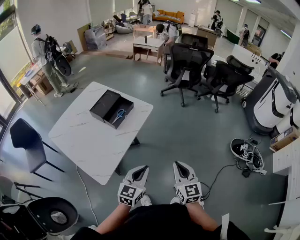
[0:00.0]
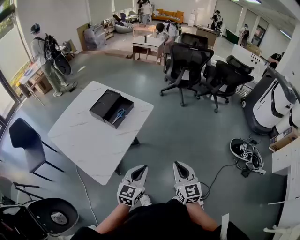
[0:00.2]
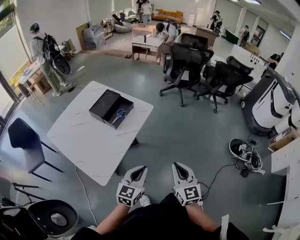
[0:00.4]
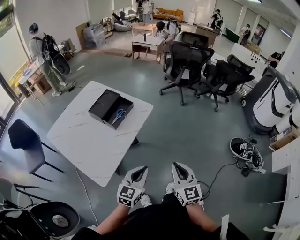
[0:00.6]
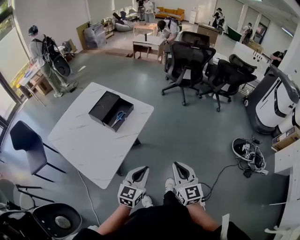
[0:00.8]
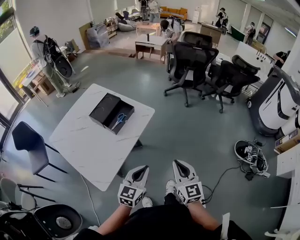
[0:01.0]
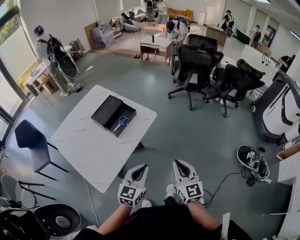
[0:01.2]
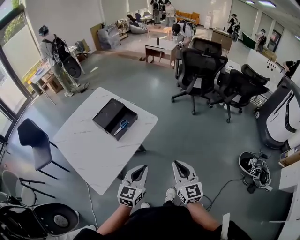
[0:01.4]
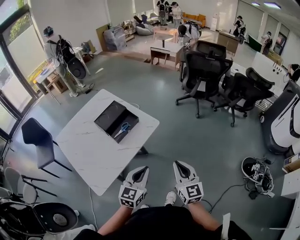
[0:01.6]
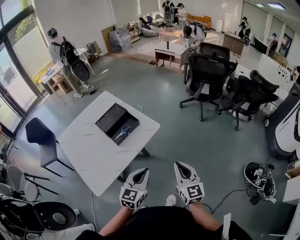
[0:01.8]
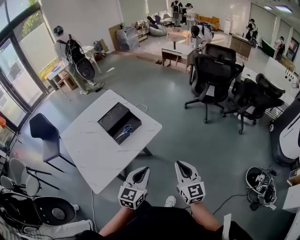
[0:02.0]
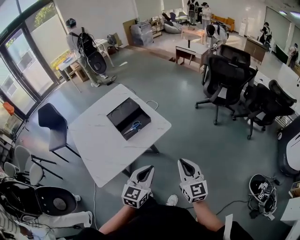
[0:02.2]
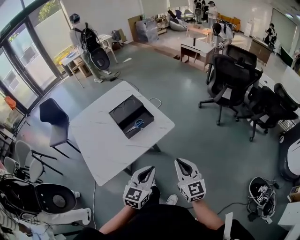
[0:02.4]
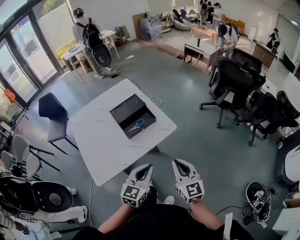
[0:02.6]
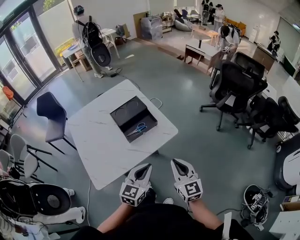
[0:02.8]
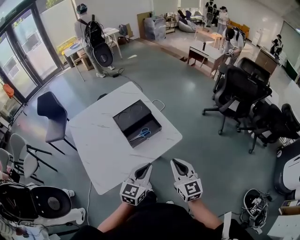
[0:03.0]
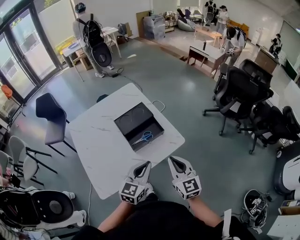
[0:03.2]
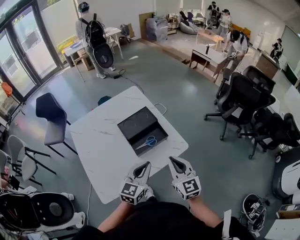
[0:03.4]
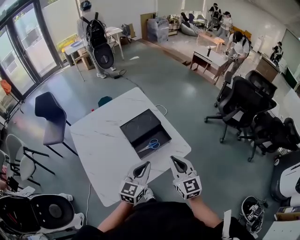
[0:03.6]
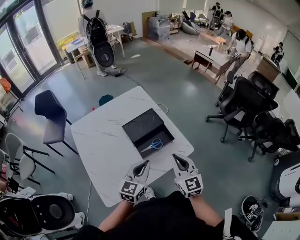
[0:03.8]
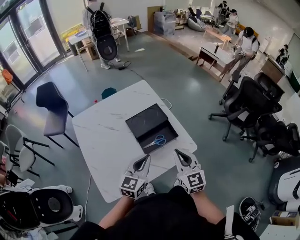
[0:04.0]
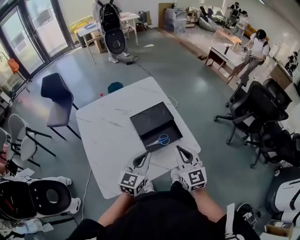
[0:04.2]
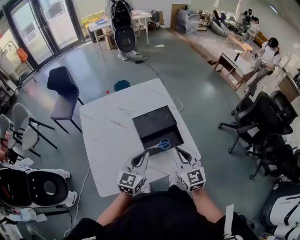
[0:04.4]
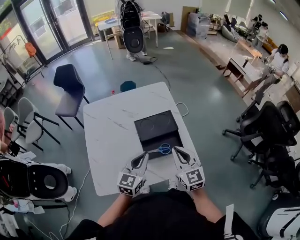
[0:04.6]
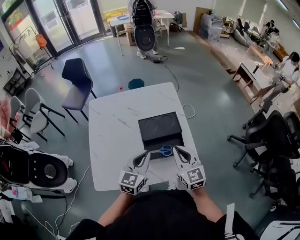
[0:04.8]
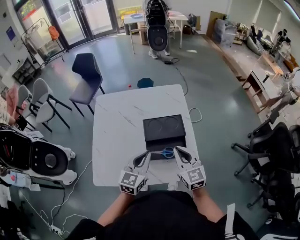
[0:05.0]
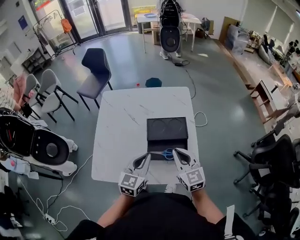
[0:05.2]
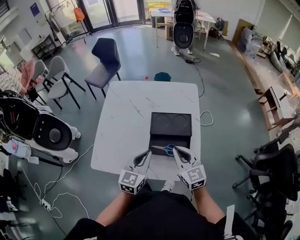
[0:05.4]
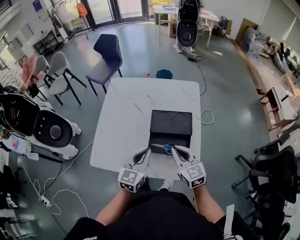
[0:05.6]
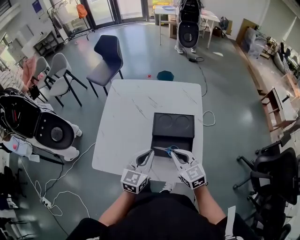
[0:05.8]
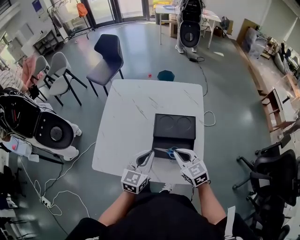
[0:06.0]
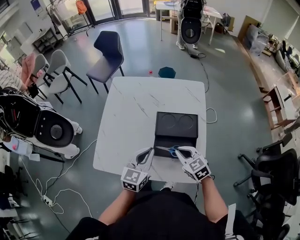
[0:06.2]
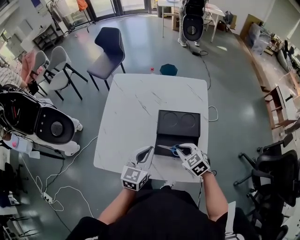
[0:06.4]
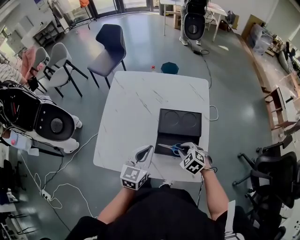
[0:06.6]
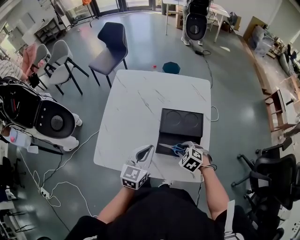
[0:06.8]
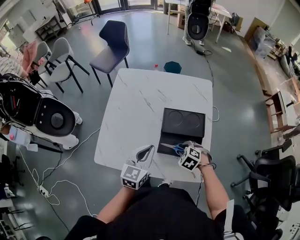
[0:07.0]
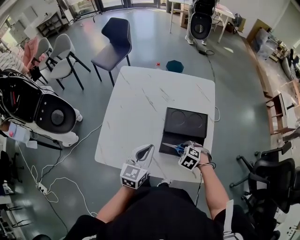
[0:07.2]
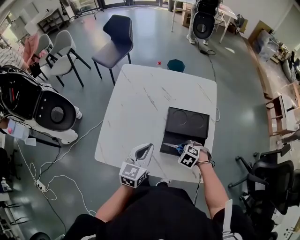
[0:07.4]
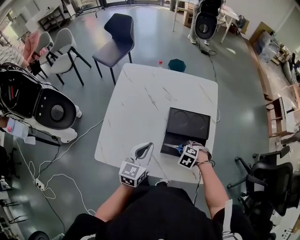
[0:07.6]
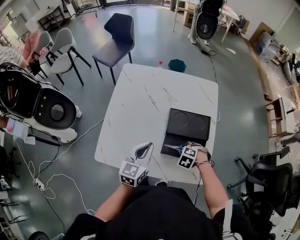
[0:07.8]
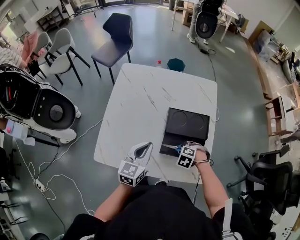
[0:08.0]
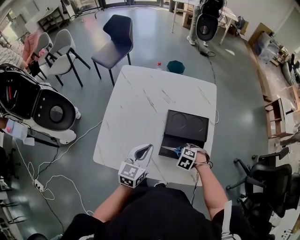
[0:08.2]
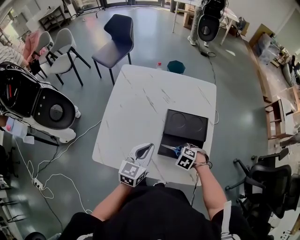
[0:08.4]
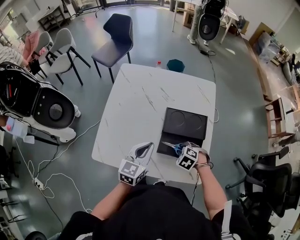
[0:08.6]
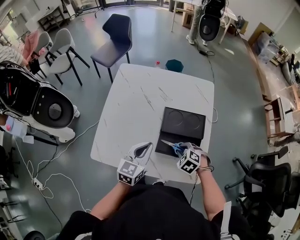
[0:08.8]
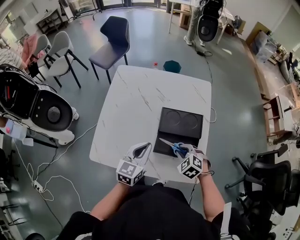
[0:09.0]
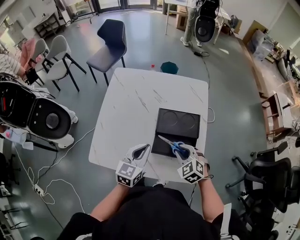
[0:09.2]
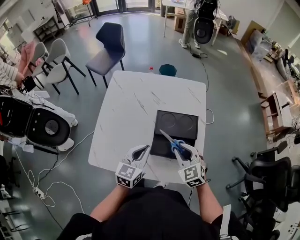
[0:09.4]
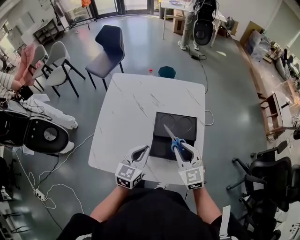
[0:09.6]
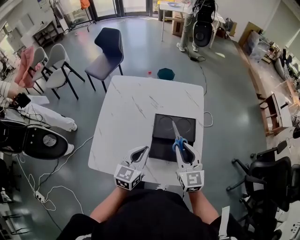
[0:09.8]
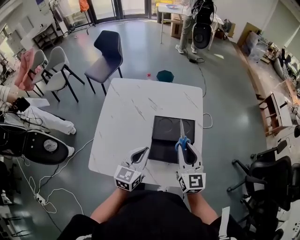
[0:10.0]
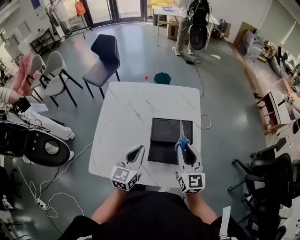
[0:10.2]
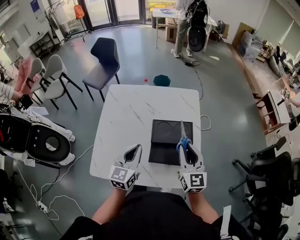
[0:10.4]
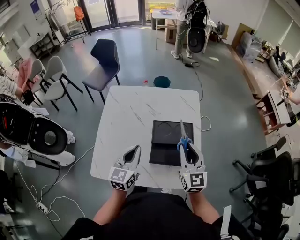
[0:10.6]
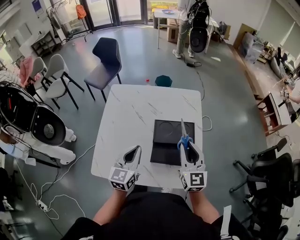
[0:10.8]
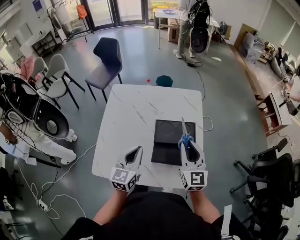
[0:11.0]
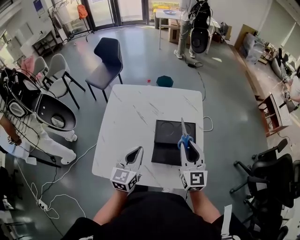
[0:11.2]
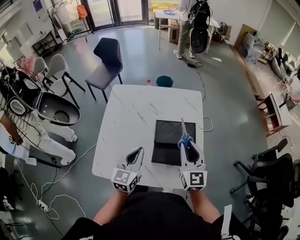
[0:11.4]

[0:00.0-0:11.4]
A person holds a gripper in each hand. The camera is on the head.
0:00.0 to 0:01.4: Both grippers travel together forward, some 10 cm.
0:01.4 to 0:02.8: Both grippers travel together forward, some 10 cm. The right gripper turns by about 20 degrees.
0:02.8 to 0:04.2: The two grippers go roughly 20 cm forward and to the left.
0:04.2 to 0:05.6: The right gripper changes place by about 10 cm, and rotates about 40 degrees, while the left gripper turns by about 30 degrees.
0:05.6 to 0:07.2: The right gripper moves downward, roughly 20 cm, angles its fingers downward, by roughly 50 degrees, and opens up, while the left gripper shifts by about 5 cm.
0:07.2 to 0:08.6: There are only small adjustments of the grippers.
0:08.6 to 0:10.0: The right gripper moves upward, about 25 cm, and tips its fingers upward by roughly 70 degrees.
0:10.0 to 0:11.4: The grippers stay close to where they were, moving slightly.

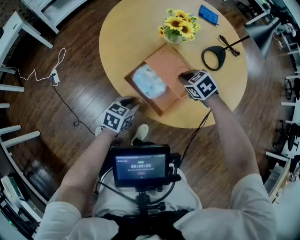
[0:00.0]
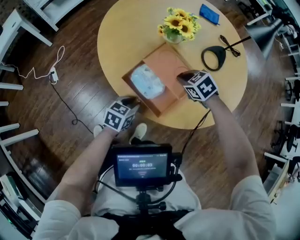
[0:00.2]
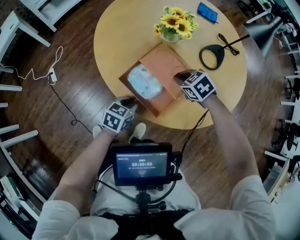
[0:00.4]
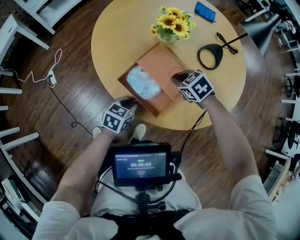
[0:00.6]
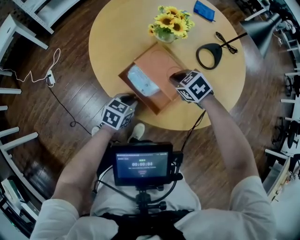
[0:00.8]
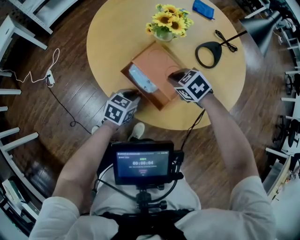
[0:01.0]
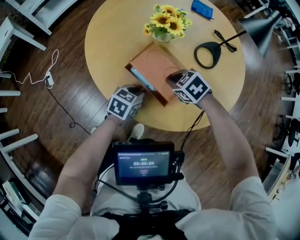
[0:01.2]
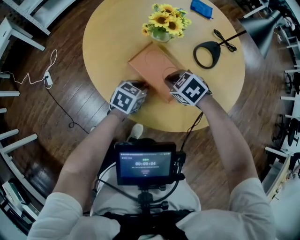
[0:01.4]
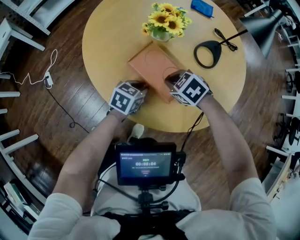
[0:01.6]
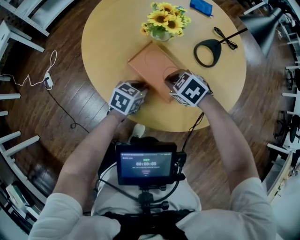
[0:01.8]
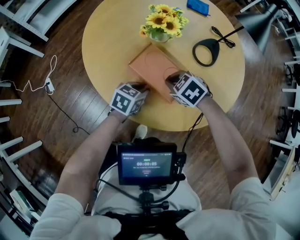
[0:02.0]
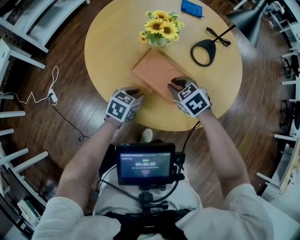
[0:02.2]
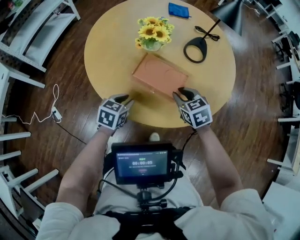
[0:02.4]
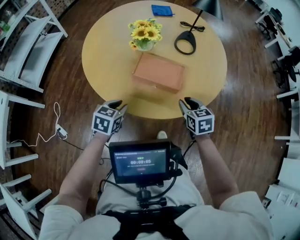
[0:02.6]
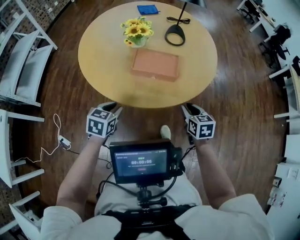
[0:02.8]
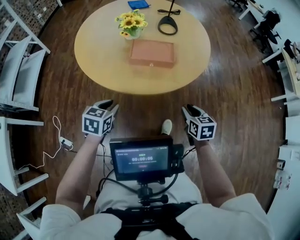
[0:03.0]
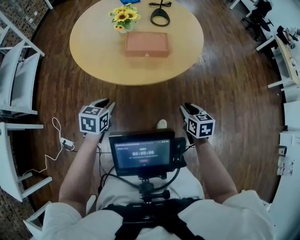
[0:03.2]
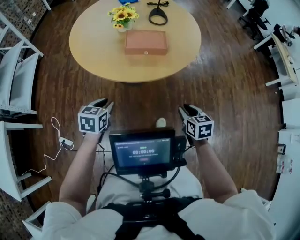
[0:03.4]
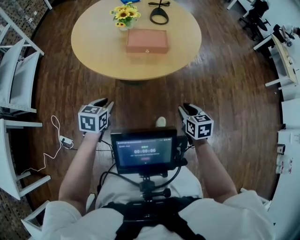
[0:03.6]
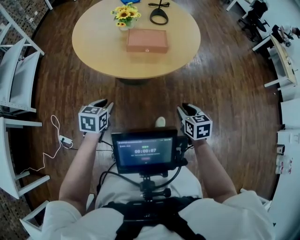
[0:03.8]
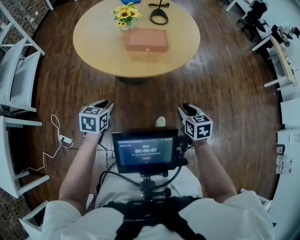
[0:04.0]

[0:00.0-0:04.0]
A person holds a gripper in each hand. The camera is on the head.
0:00.0 to 0:01.4: The left gripper heads to the right and forward, covering about 15 cm.
0:01.4 to 0:02.6: The right gripper changes place by some 15 cm, turns by some 70 degrees, and opens up. The left gripper shifts by approximately 20 cm.
0:02.6 to 0:04.0: The right gripper is displaced backward by approximately 30 cm, and turns by some 20 degrees; the left gripper is displaced backward by some 20 cm.

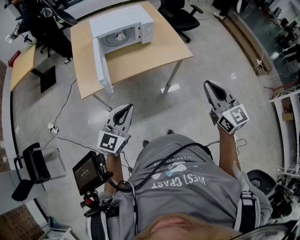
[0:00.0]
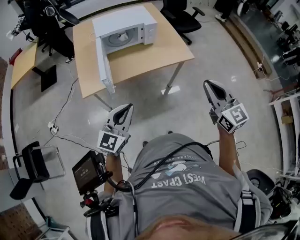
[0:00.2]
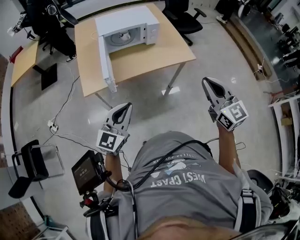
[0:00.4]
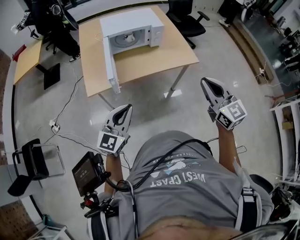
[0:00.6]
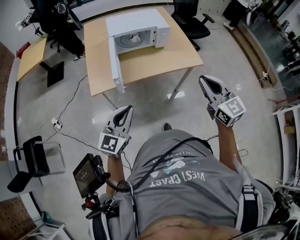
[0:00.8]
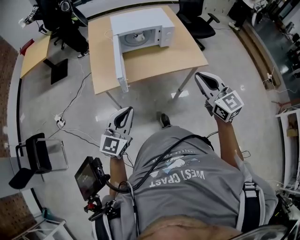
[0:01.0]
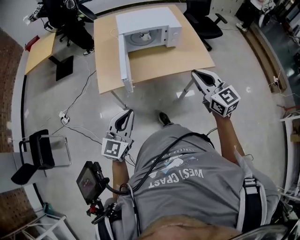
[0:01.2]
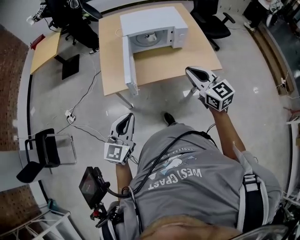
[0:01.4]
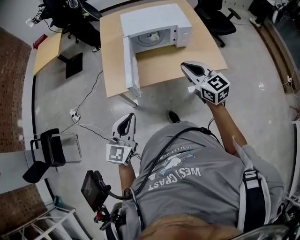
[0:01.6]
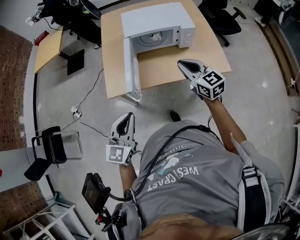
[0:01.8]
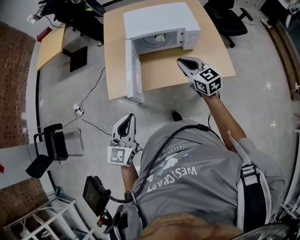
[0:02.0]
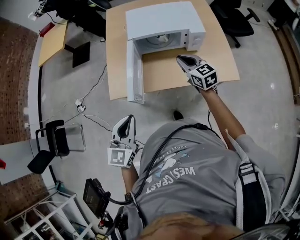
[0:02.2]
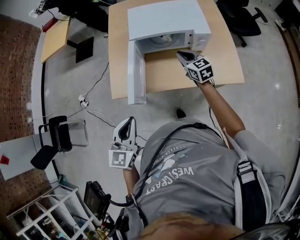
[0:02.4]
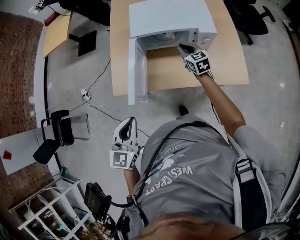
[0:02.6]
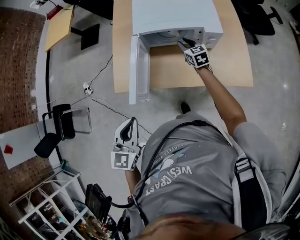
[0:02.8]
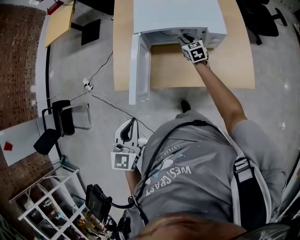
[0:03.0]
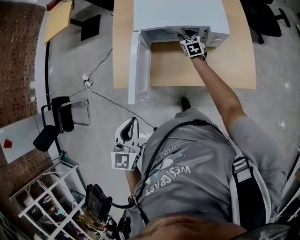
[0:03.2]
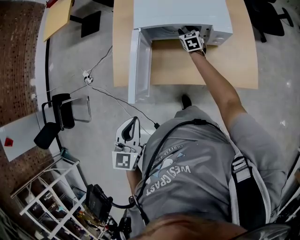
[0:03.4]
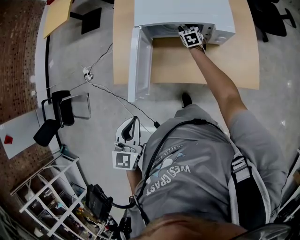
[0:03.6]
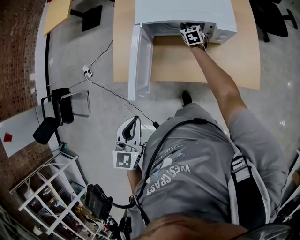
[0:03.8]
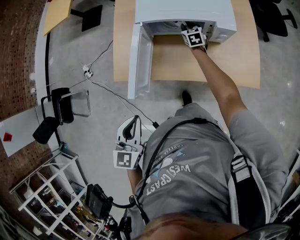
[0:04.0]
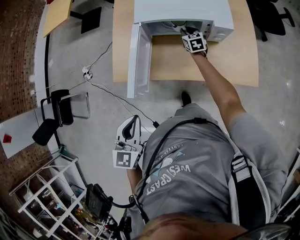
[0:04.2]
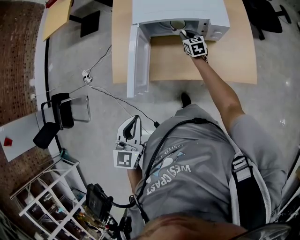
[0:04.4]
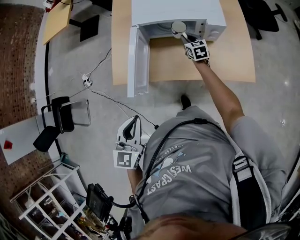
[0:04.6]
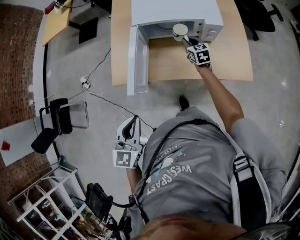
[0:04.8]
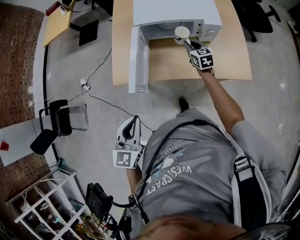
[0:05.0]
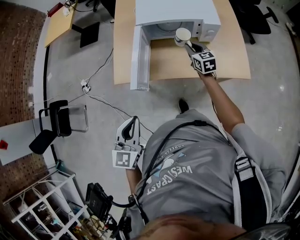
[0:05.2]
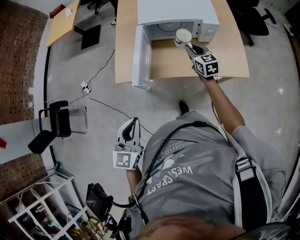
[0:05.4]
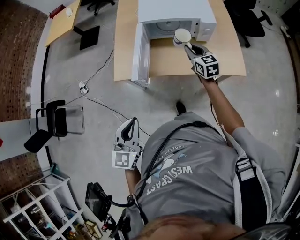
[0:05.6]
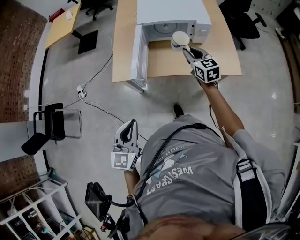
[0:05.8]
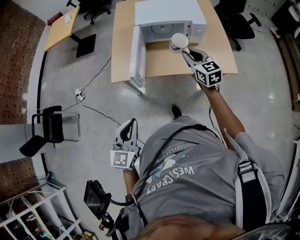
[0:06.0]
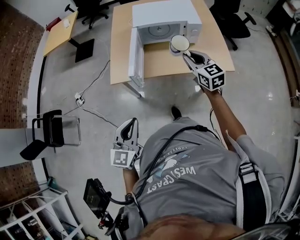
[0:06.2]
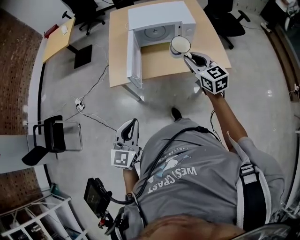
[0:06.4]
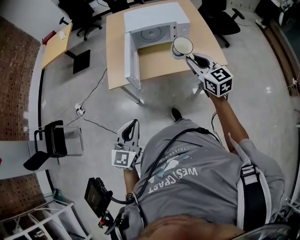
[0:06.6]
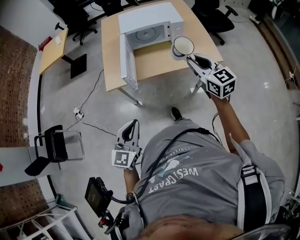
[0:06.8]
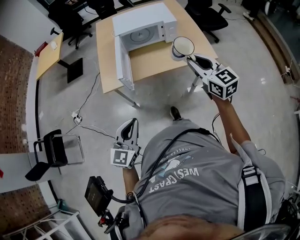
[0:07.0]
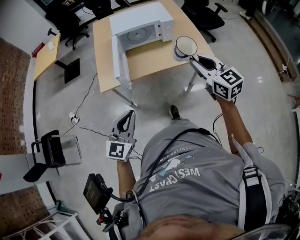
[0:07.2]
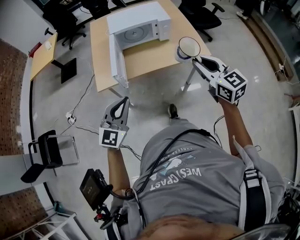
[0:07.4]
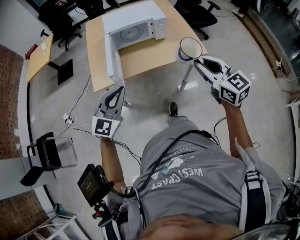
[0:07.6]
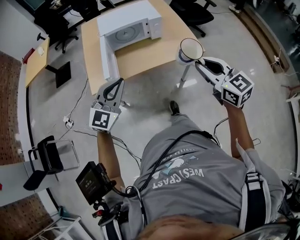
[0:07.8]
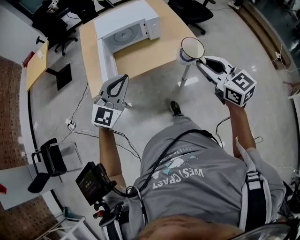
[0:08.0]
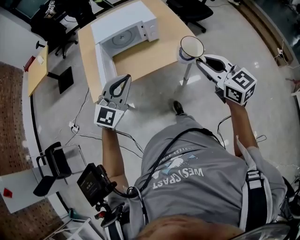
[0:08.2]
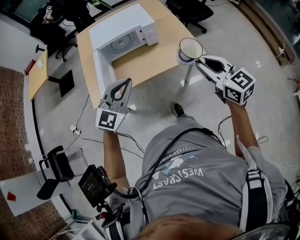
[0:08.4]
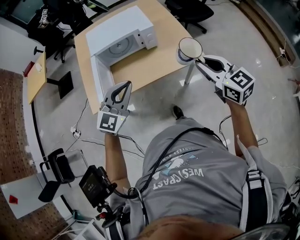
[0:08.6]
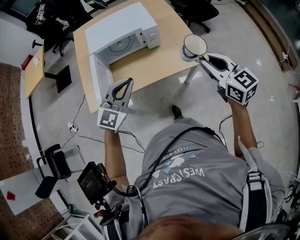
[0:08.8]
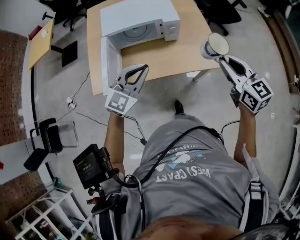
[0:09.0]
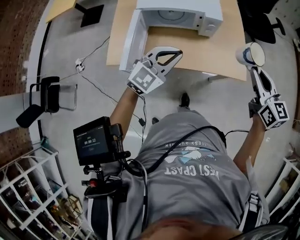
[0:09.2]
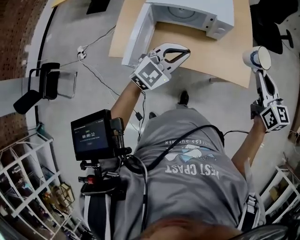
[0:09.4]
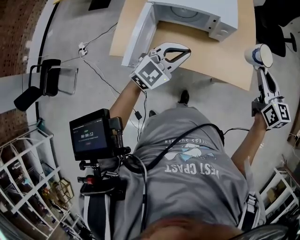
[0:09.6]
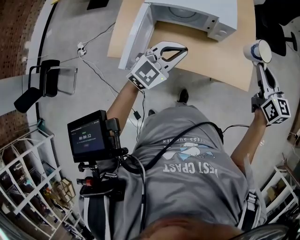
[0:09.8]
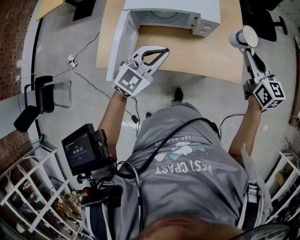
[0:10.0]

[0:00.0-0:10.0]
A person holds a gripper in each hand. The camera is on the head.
0:00.0 to 0:01.4: The left gripper shifts approximately 10 cm to the left; the right gripper heads to the left and forward, covering roughly 25 cm.
0:01.4 to 0:02.8: The left gripper shifts some 20 cm forward and to the right, and turns by roughly 20 degrees, while the right gripper moves forward and downward, some 50 cm.
0:02.8 to 0:04.2: The right gripper travels downward and forward by some 10 cm.
0:04.2 to 0:05.8: The left gripper travels backward by some 15 cm. The right gripper is displaced backward and upward by roughly 35 cm.
0:05.8 to 0:07.2: The left gripper is displaced backward by roughly 5 cm, and changes its angle by approximately 20 degrees. Meanwhile the right gripper goes approximately 30 cm backward and upward.
0:07.2 to 0:08.6: The right gripper is displaced to the right and forward by about 15 cm; the left gripper travels forward and to the right by roughly 25 cm, and rotates about 20 degrees.
0:08.6 to 0:10.0: The two grippers go roughly 25 cm forward.
